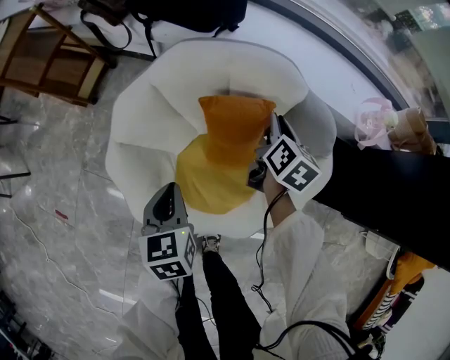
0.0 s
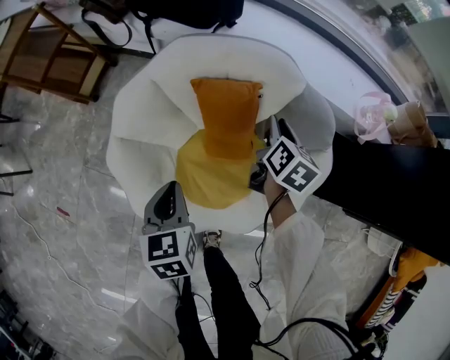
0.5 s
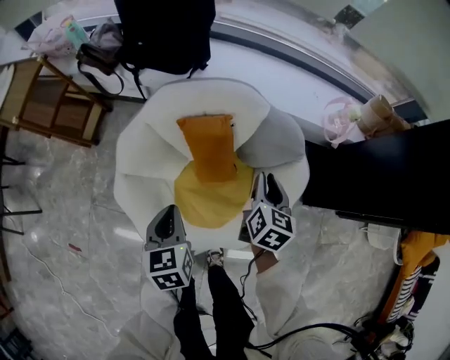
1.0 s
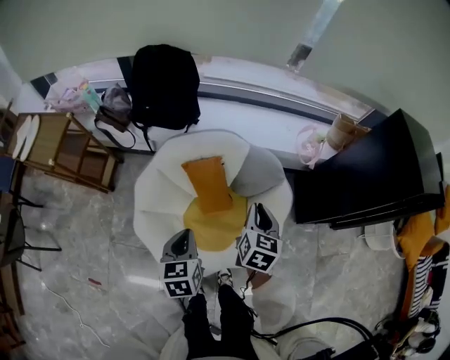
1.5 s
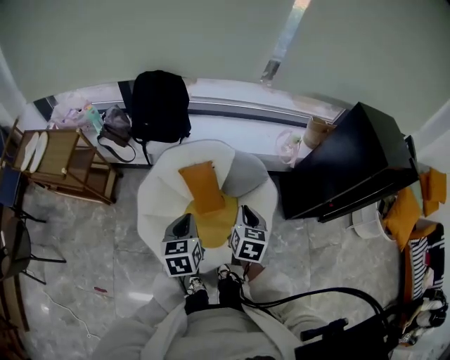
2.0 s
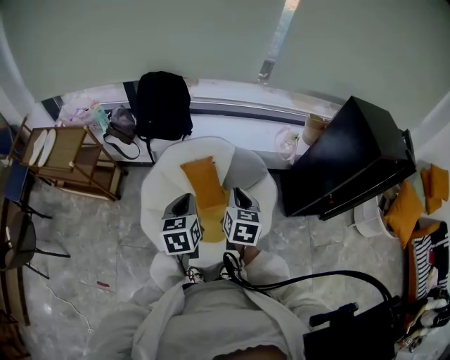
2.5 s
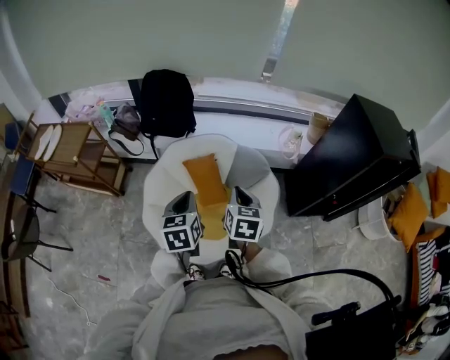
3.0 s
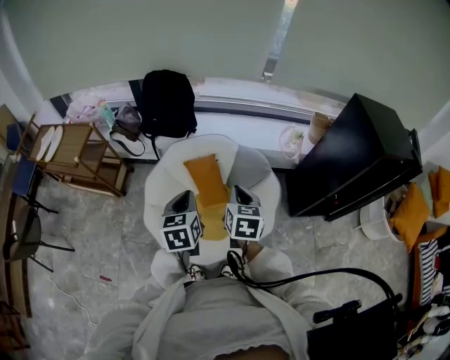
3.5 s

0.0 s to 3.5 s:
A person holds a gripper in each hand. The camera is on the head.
0.0 to 2.0 s: The left gripper shifts some 30 cm upward, and changes its angle by about 30 degrees; the right gripper travels upward and backward by roughly 40 cm.
2.0 to 3.5 s: The left gripper moves roughly 5 cm.

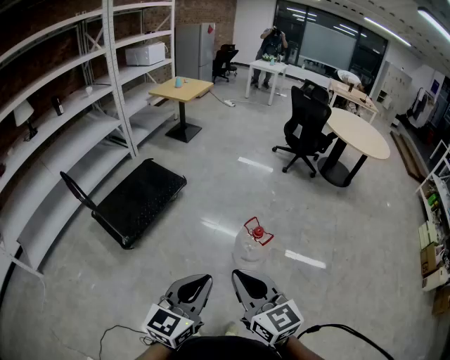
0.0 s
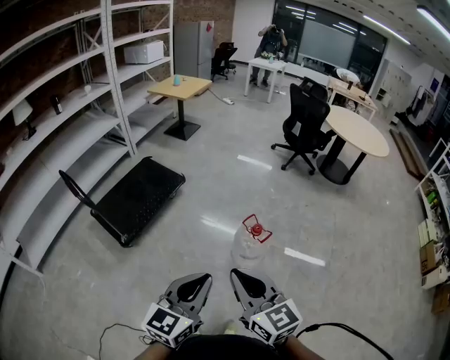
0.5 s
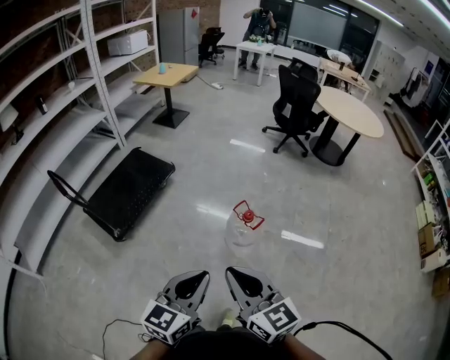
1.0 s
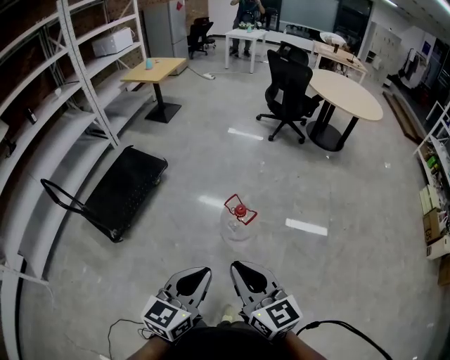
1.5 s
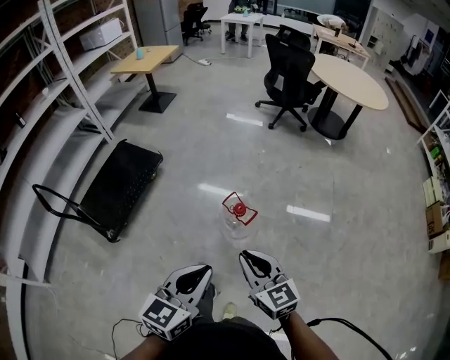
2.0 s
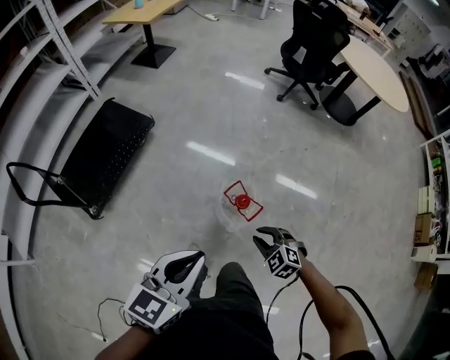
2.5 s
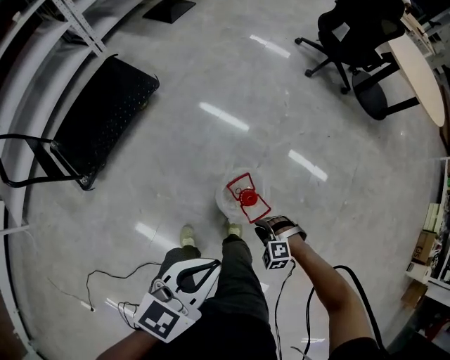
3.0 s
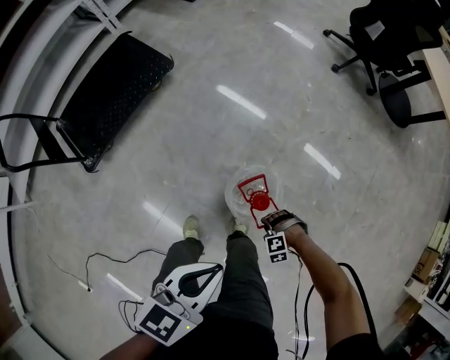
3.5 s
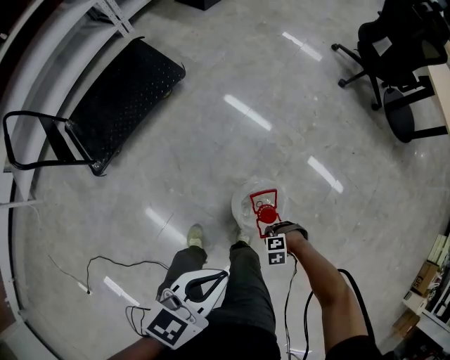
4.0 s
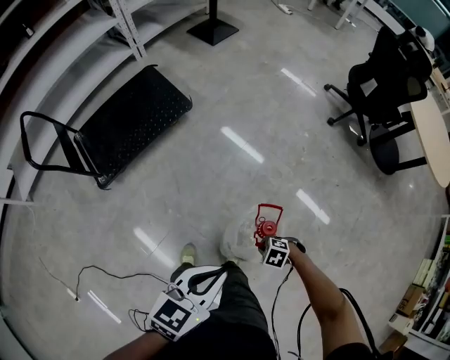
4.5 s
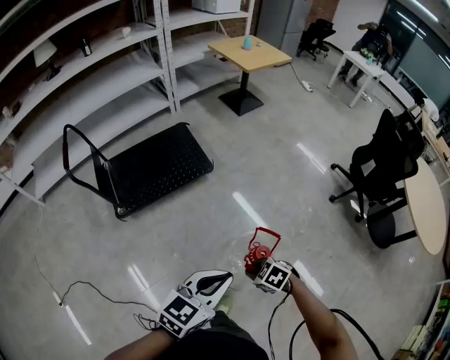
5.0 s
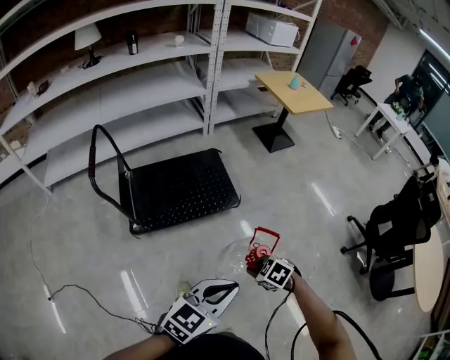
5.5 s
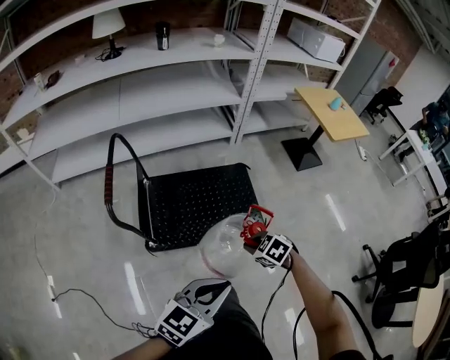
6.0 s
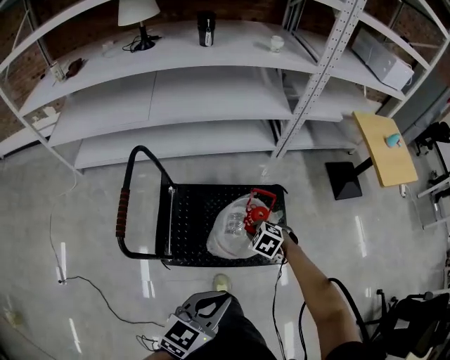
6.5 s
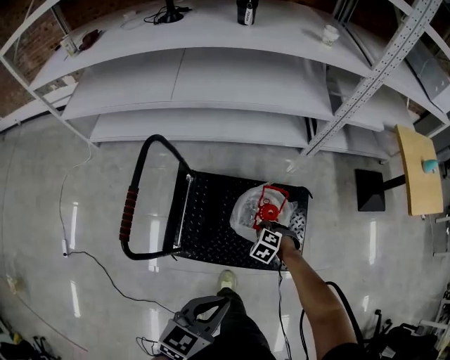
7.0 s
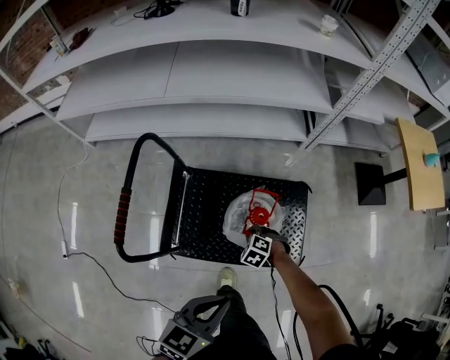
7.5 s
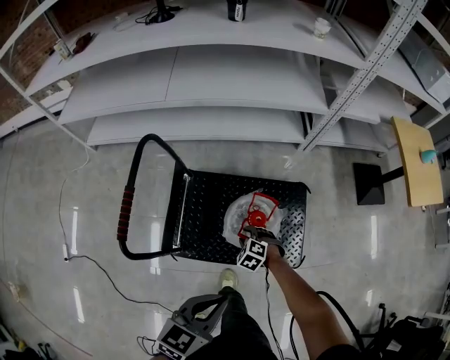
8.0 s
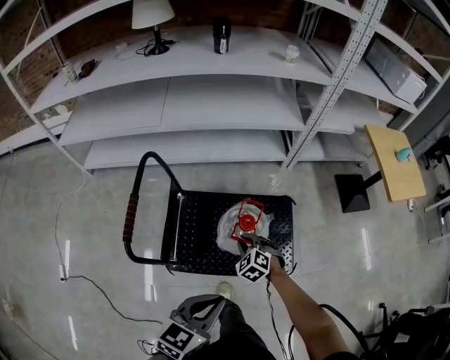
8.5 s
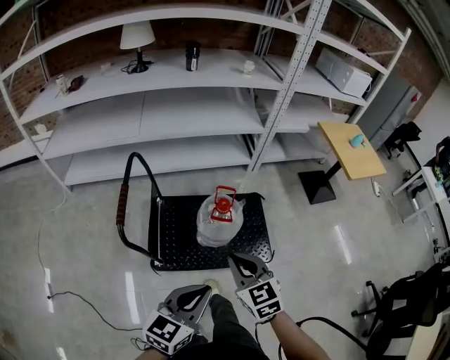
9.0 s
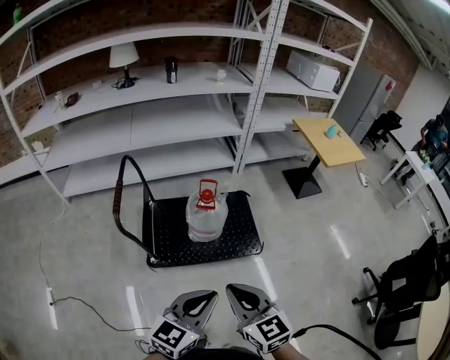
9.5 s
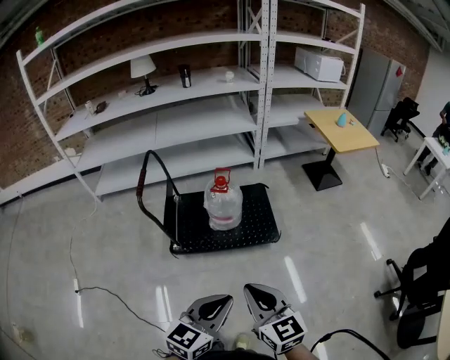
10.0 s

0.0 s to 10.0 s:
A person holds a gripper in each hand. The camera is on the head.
0.0 to 2.0 s: The left gripper travels to the right, forward and downward by some 20 cm; the right gripper travels to the right, downward and forward by about 25 cm.
2.0 to 4.0 s: The right gripper shifts some 60 cm downward, points its fingers about 60 degrees further downward, and opens, then closes again; the left gripper ends up about 40 cm from where it was.
4.0 to 6.0 s: The two grippers travel together, about 70 cm. The left gripper rotates approximately 40 degrees.
6.0 to 8.0 s: The right gripper heads forward and downward, covering approximately 40 cm, rotates roughly 30 degrees, and opens its fingers. The left gripper heads forward, covering about 35 cm, and rotates approximately 30 degrees.
8.0 to 10.0 s: The pair of grippers is taken backward, about 60 cm. The right gripper goes approximately 50 cm upward, tips its fingers upward by approximately 50 degrees, and closes.

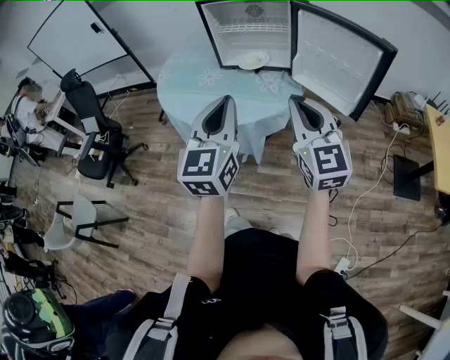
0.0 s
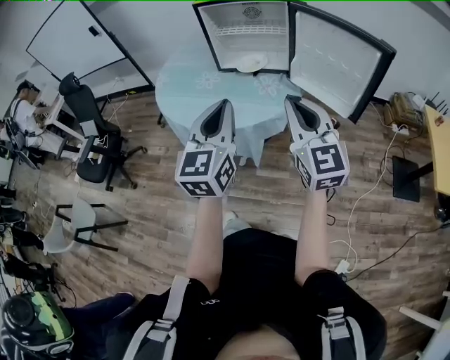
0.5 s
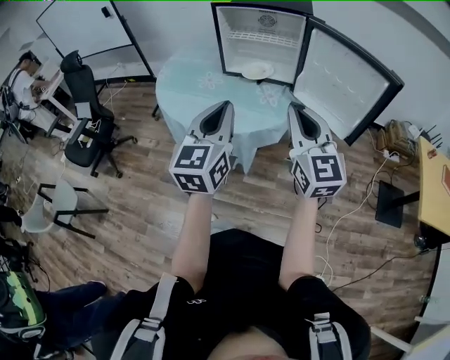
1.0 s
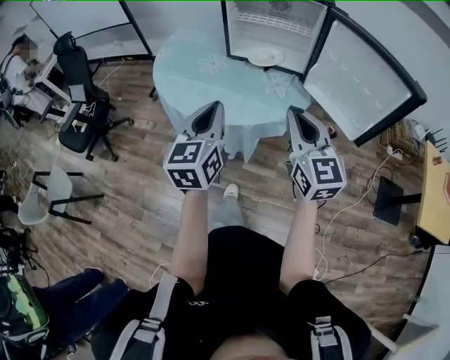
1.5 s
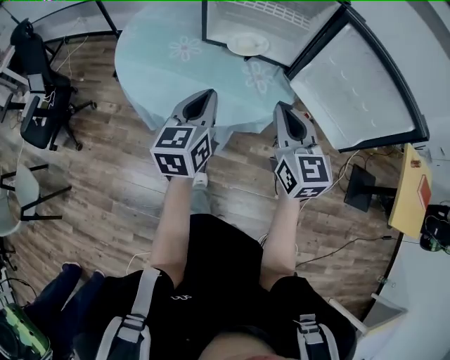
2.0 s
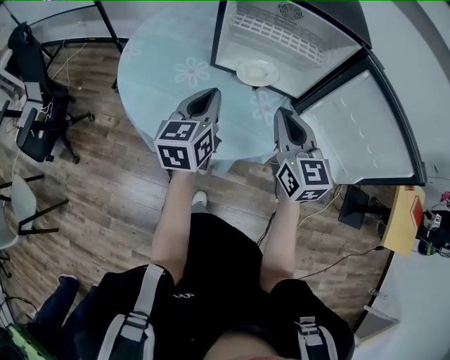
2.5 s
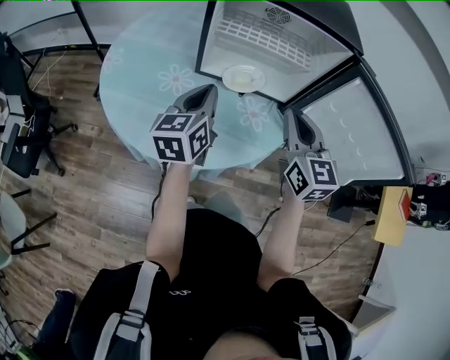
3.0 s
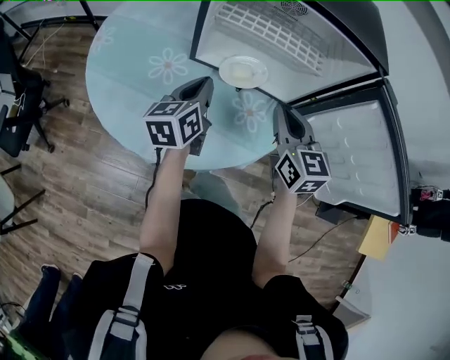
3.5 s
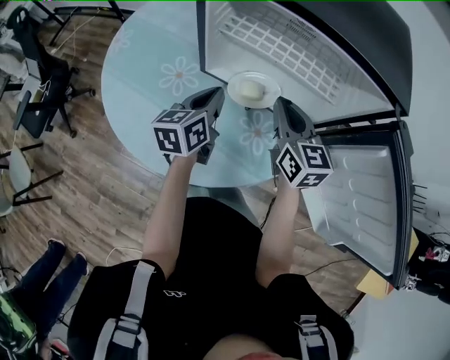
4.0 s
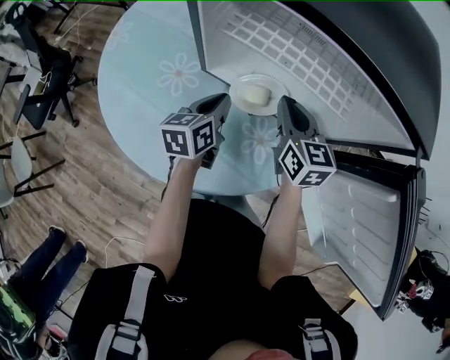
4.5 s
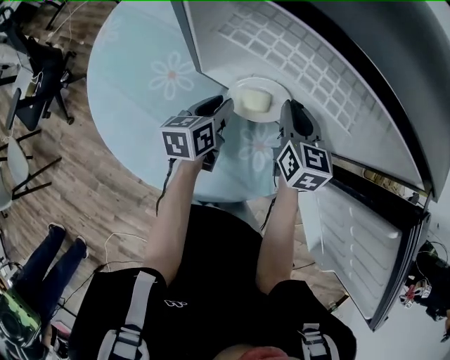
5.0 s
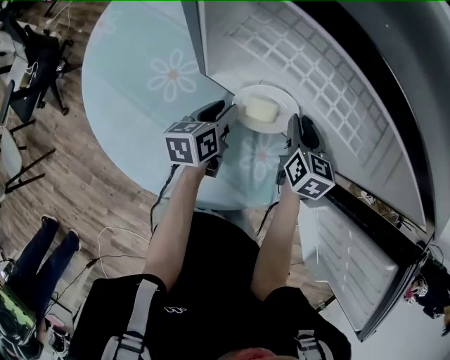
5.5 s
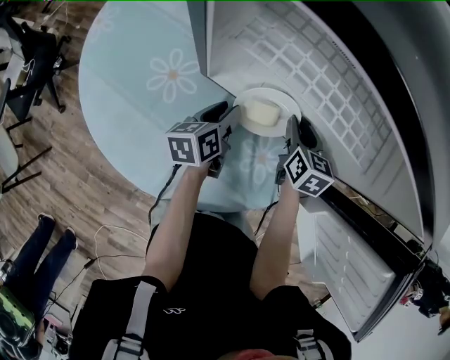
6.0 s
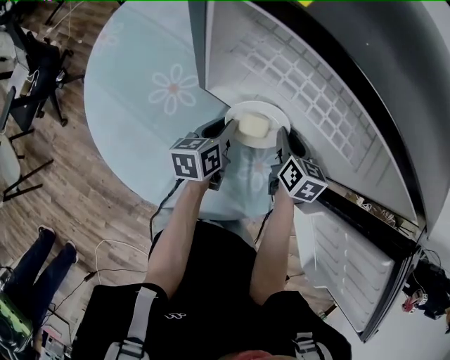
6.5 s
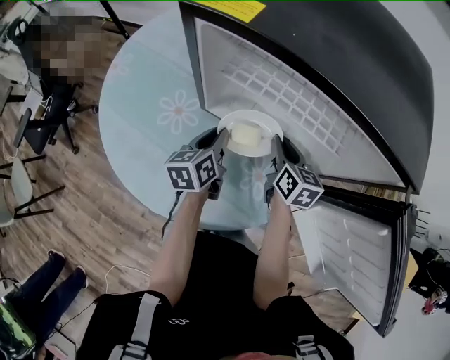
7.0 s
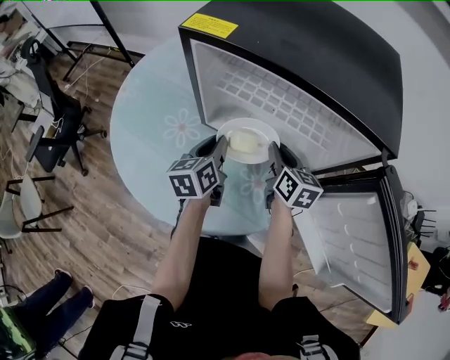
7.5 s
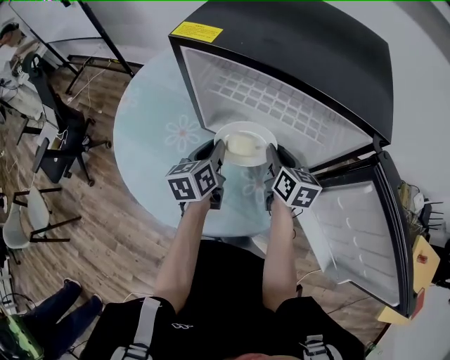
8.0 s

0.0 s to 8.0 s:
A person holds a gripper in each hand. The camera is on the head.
0.0 to 2.0 s: The two grippers go approximately 25 cm forward and downward. The left gripper swivels approximately 20 degrees.
2.0 to 4.0 s: The grippers both shift forward by about 30 cm.
4.0 to 6.0 s: The right gripper heads downward and forward, covering some 20 cm, turns by some 30 degrees, and opens its fingers, while the left gripper goes about 15 cm downward, turns by approximately 20 degrees, and opens.
6.0 to 8.0 s: The two grippers go some 10 cm upward. The left gripper closes its fingers.

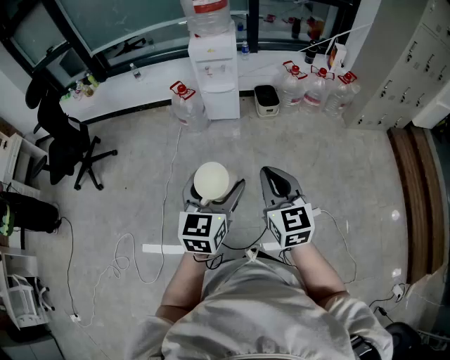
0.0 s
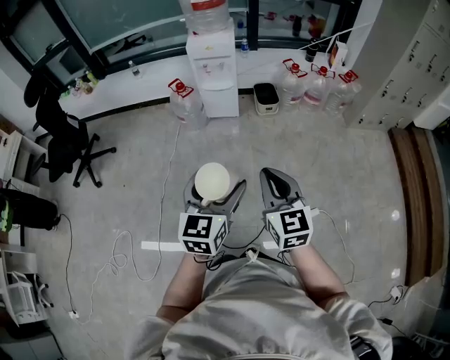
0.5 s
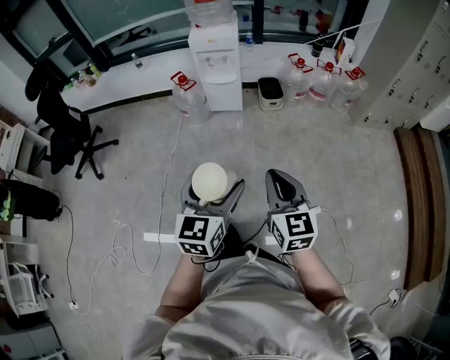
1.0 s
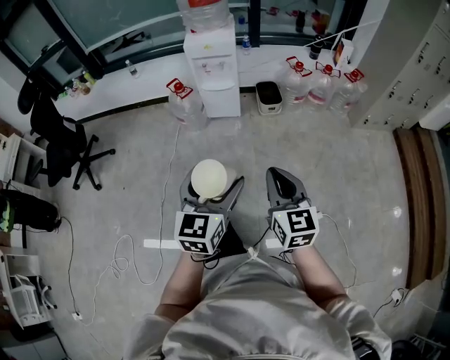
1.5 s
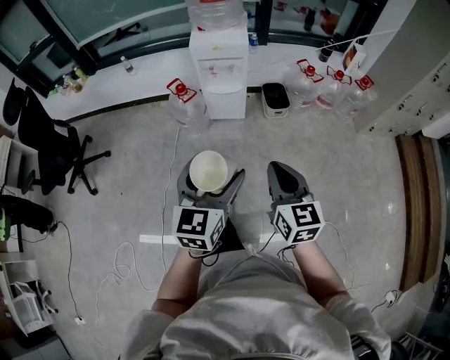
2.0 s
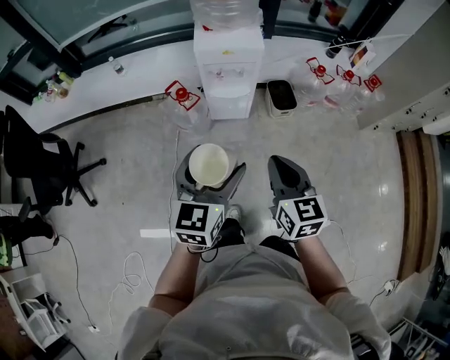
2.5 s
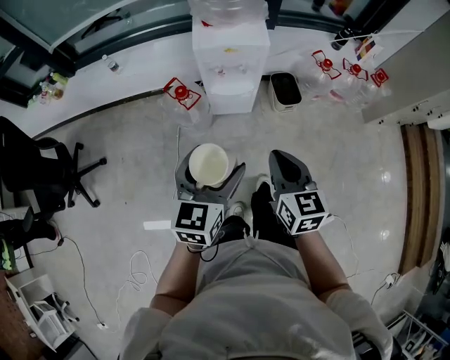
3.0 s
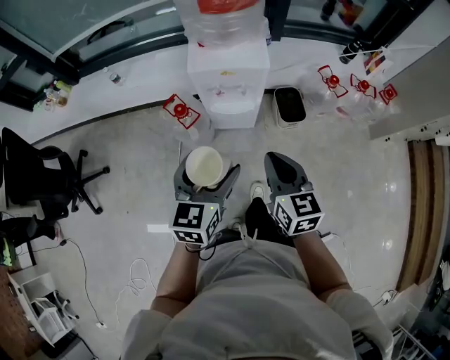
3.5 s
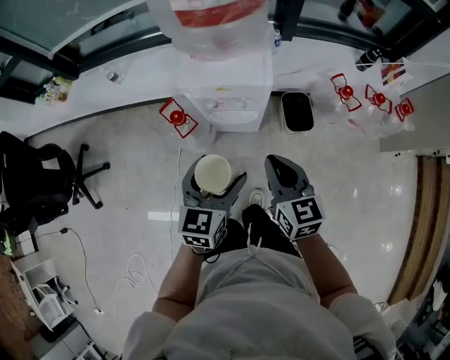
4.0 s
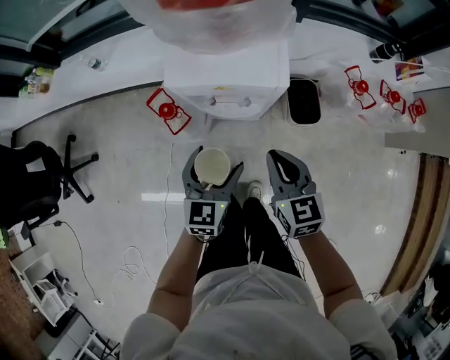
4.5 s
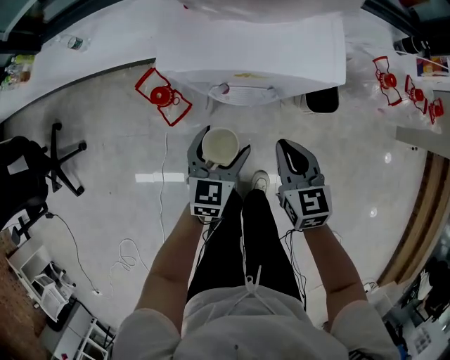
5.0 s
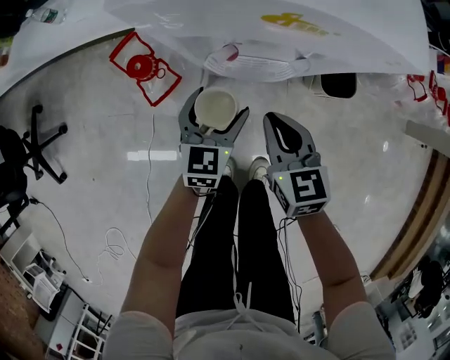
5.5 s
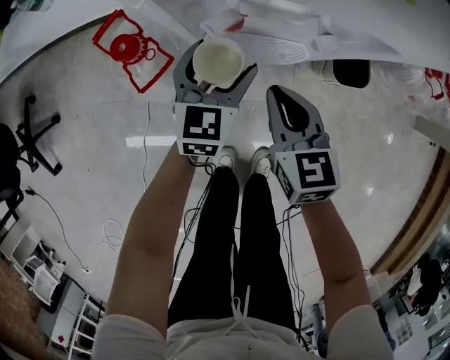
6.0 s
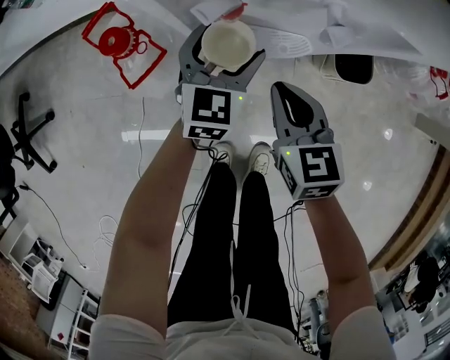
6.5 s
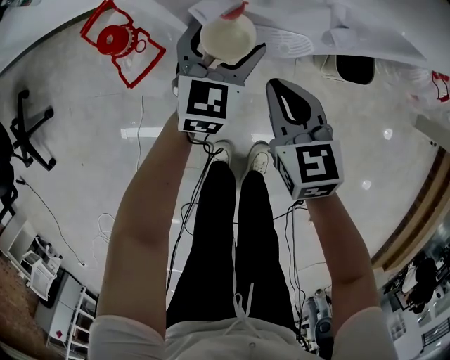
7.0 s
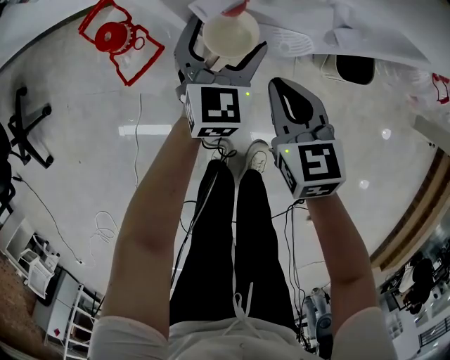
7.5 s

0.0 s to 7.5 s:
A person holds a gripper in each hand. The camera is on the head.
0.0 to 2.0 s: The grippers both shift forward by some 20 cm.
2.0 to 4.0 s: Both grippers travel together forward, roughly 40 cm.
4.0 to 5.5 s: The left gripper heads downward and forward, covering roughly 40 cm, while the right gripper travels downward by roughly 30 cm.
5.5 to 7.5 s: The left gripper shifts about 10 cm forward. The right gripper moves downward, some 5 cm.
